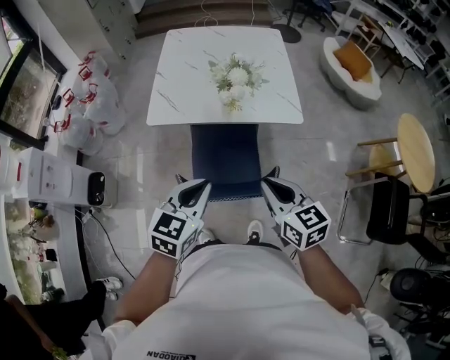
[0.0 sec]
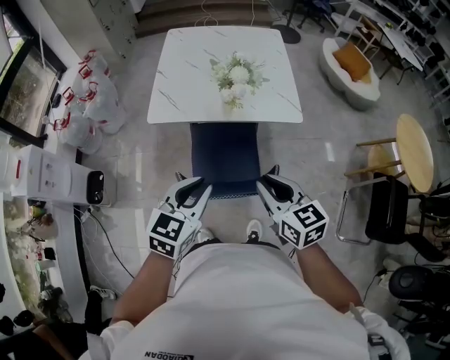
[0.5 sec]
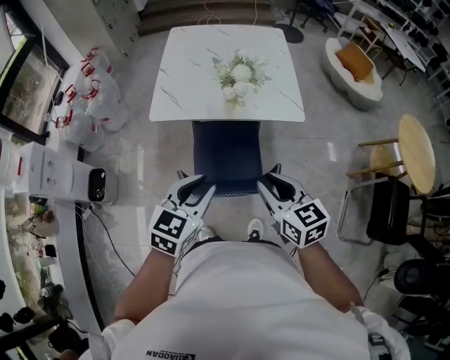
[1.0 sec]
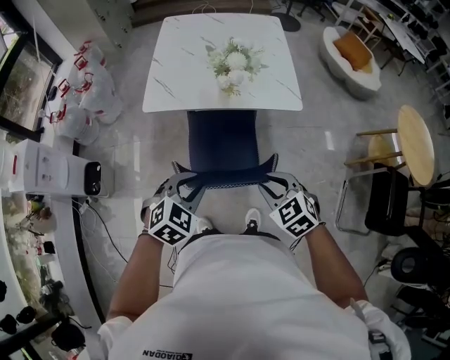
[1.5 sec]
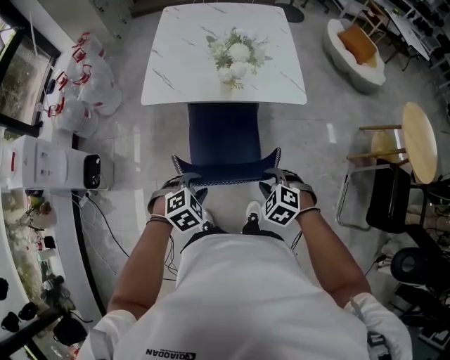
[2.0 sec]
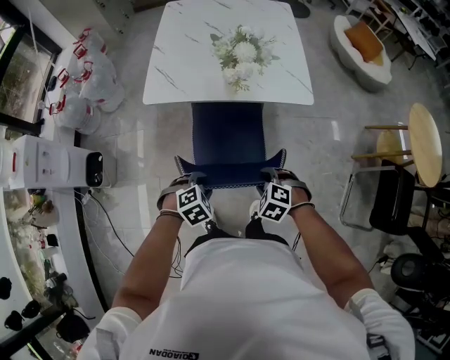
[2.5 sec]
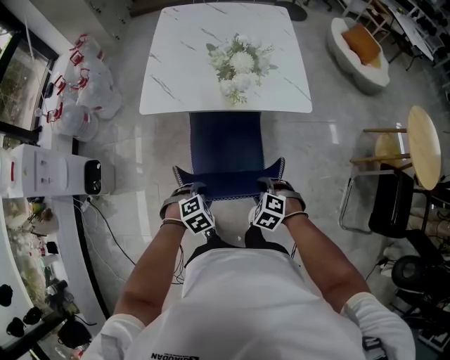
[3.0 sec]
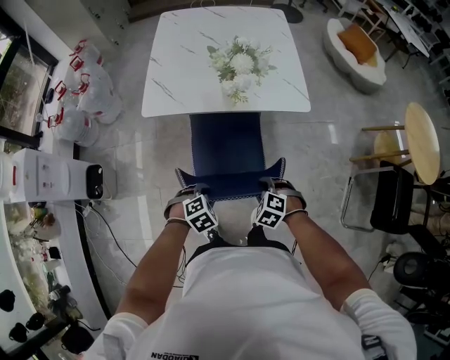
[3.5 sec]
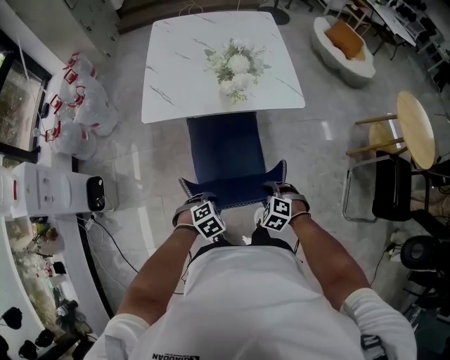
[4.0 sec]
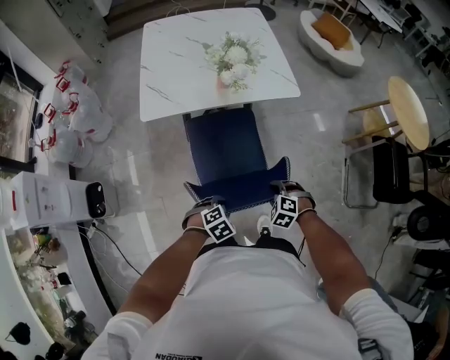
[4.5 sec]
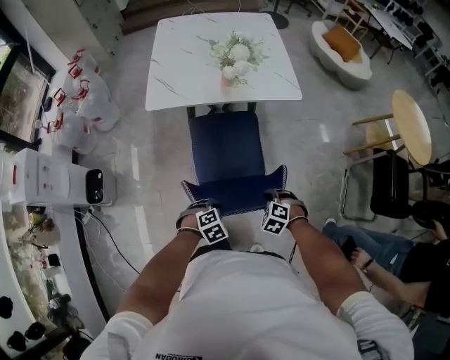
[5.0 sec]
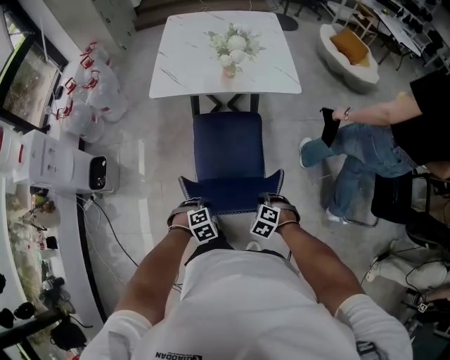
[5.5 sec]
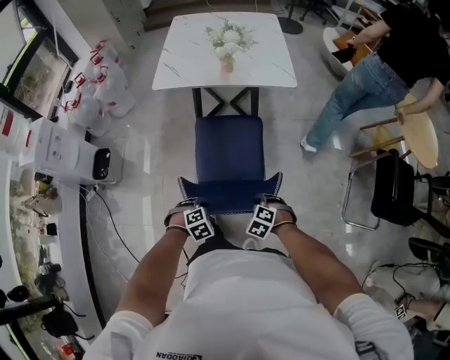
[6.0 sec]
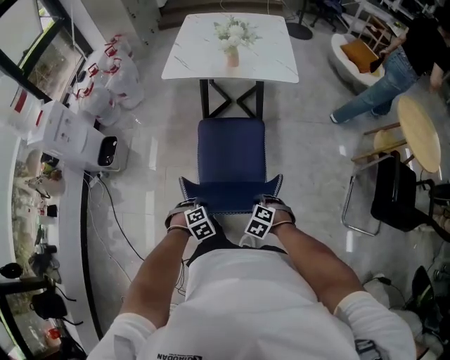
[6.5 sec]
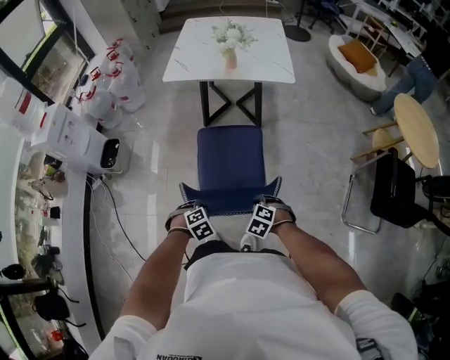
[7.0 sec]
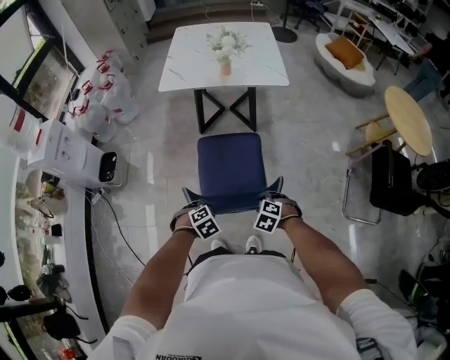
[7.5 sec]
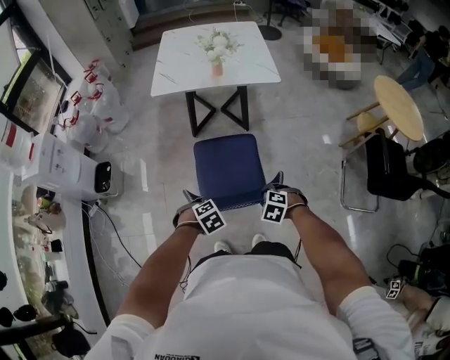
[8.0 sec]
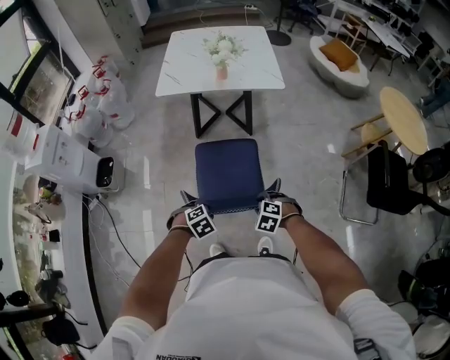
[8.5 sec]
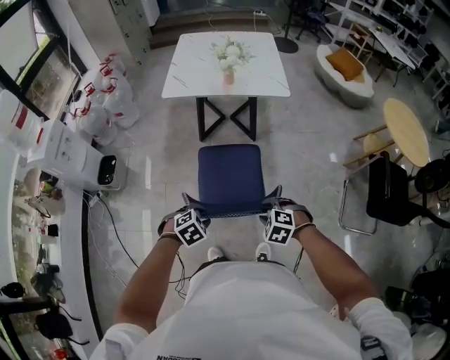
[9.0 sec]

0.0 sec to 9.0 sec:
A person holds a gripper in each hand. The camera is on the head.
0.0 sec to 2.0 sec: Both grippers travel together downward, some 20 cm. The right gripper points its fingers approximately 40 degrees further downward, and opens its fingers. The left gripper tilts its fingers some 40 degrees downward, and opens.
2.0 sec to 4.5 sec: The grippers both shift downward and backward by roughly 10 cm.
4.5 sec to 7.0 sec: The right gripper shifts by roughly 25 cm, while the left gripper ends up about 25 cm from where it was.
7.0 sec to 9.0 sec: Both grippers travel together upward, roughly 10 cm.

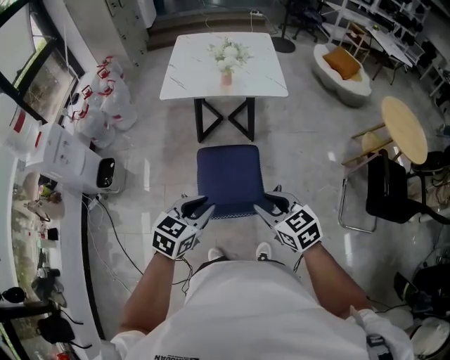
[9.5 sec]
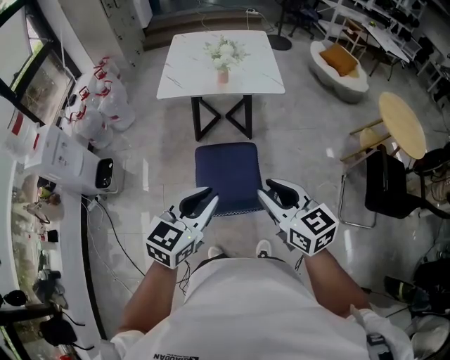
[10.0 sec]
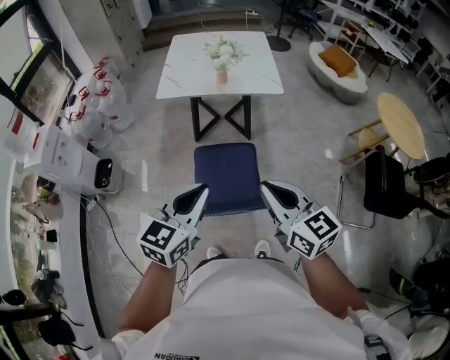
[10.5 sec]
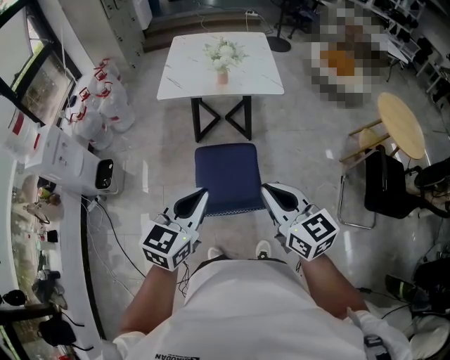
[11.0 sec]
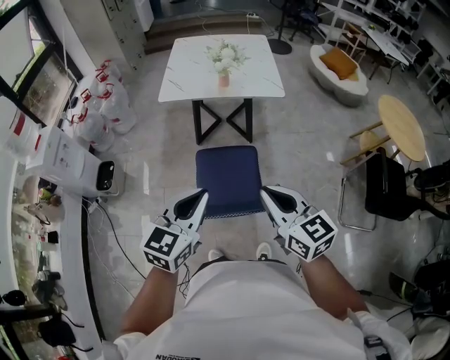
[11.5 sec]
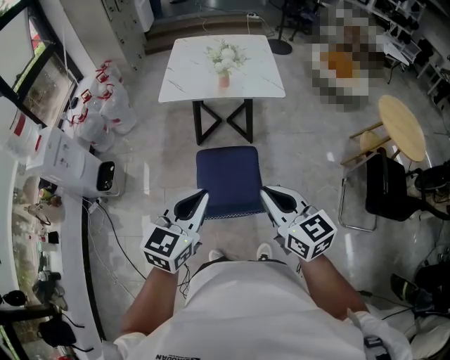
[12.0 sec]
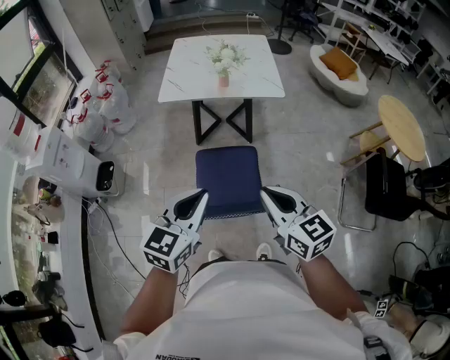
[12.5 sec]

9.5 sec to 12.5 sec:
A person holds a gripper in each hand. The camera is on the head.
9.5 sec to 11.0 sec: The grippers both shift upward by roughly 10 cm. The left gripper closes its fingers. The right gripper rotates approximately 20 degrees, and closes its fingers.
11.0 sec to 12.5 sec: The two grippers keep their place.

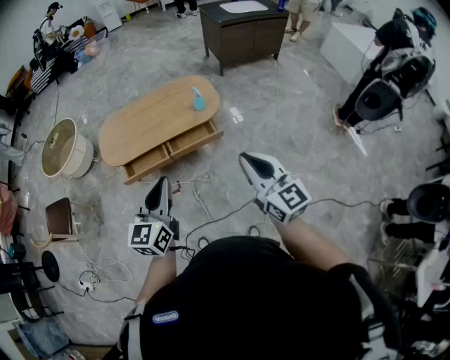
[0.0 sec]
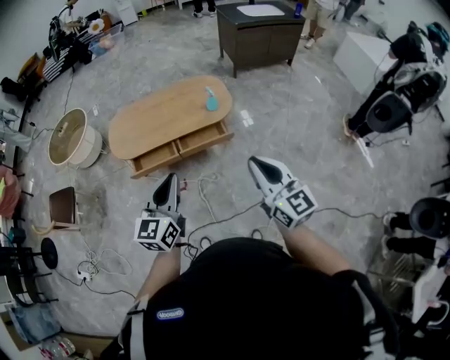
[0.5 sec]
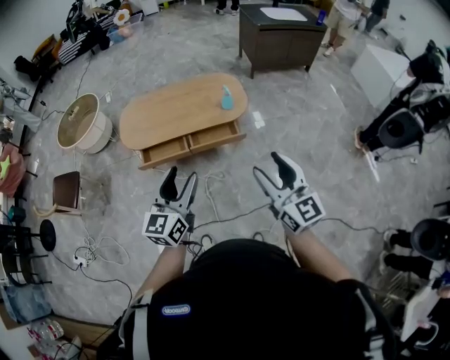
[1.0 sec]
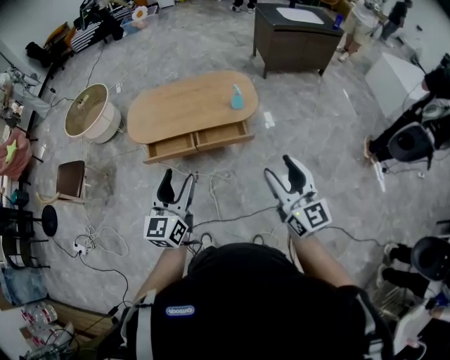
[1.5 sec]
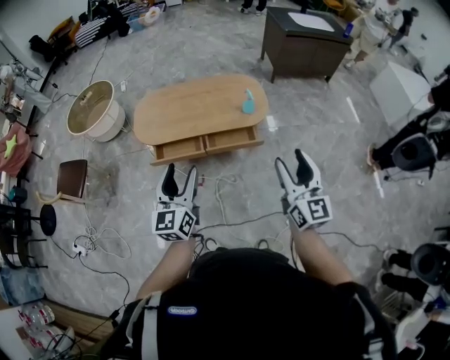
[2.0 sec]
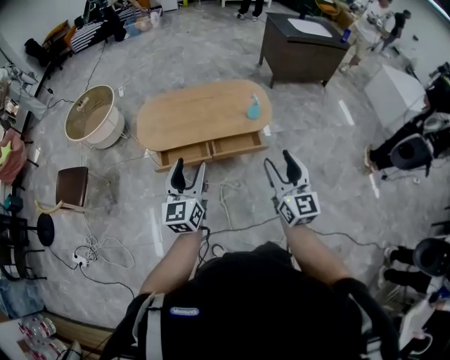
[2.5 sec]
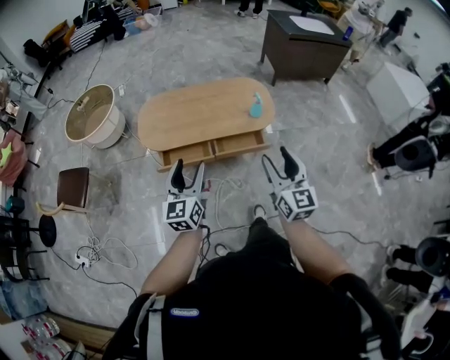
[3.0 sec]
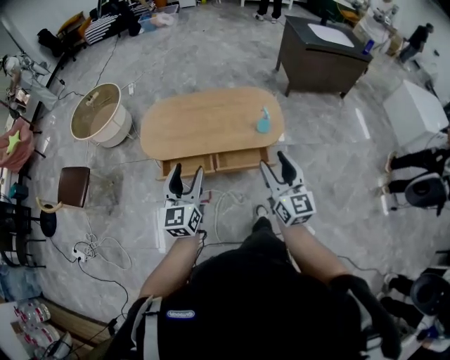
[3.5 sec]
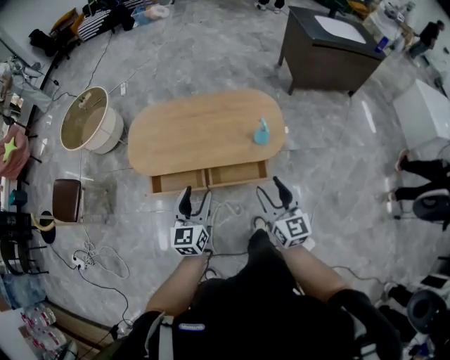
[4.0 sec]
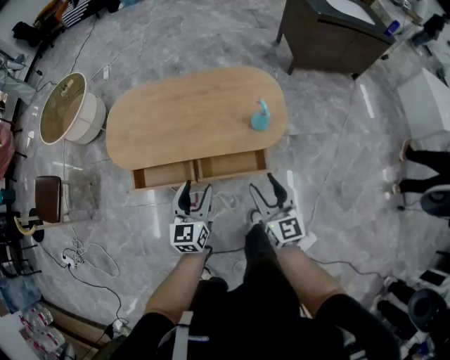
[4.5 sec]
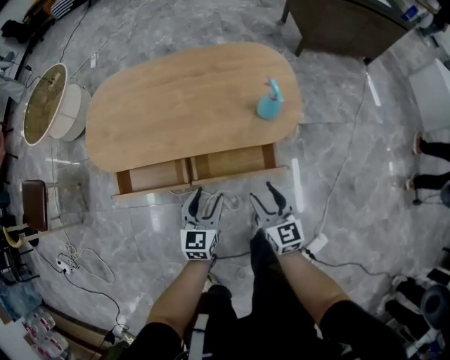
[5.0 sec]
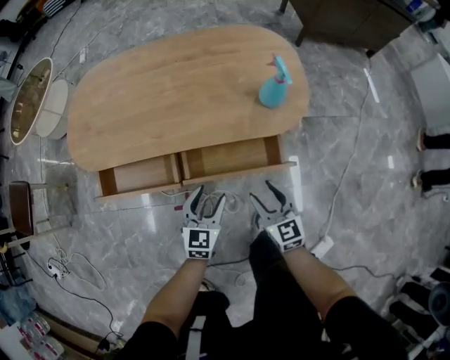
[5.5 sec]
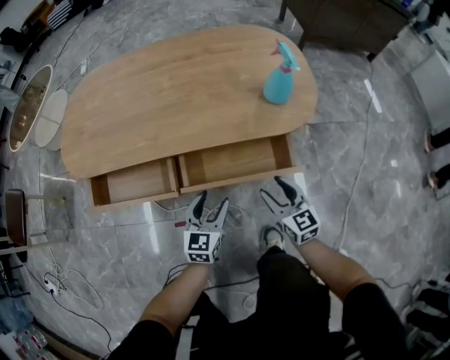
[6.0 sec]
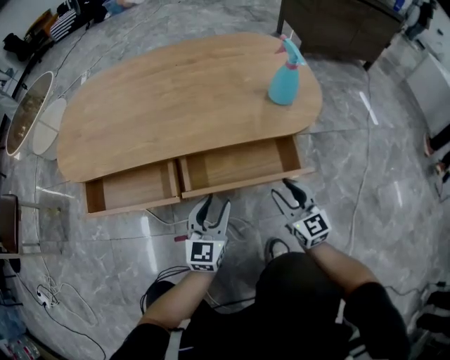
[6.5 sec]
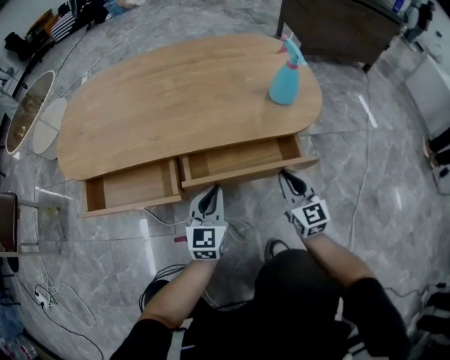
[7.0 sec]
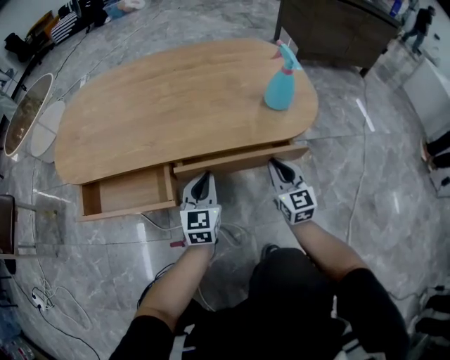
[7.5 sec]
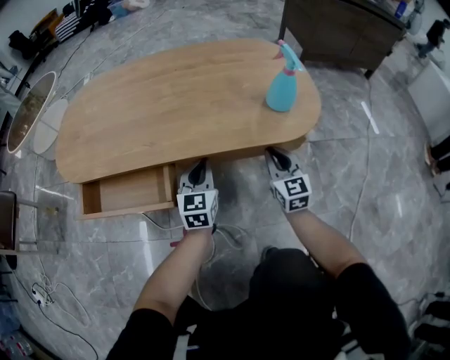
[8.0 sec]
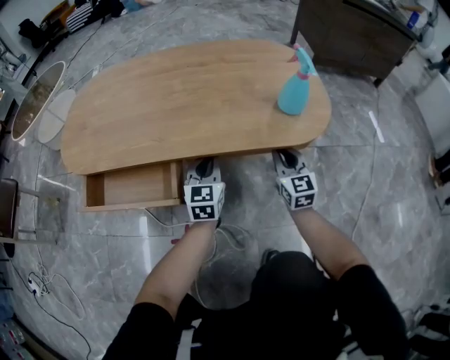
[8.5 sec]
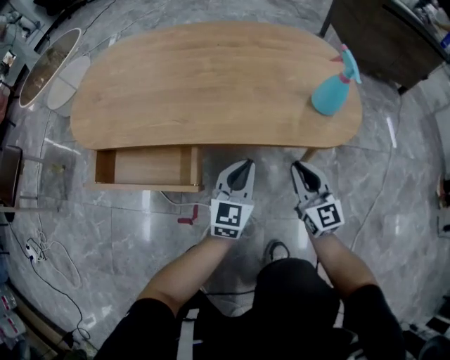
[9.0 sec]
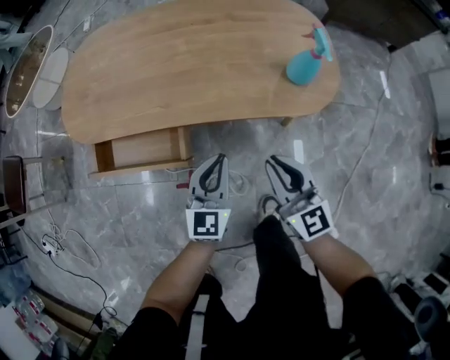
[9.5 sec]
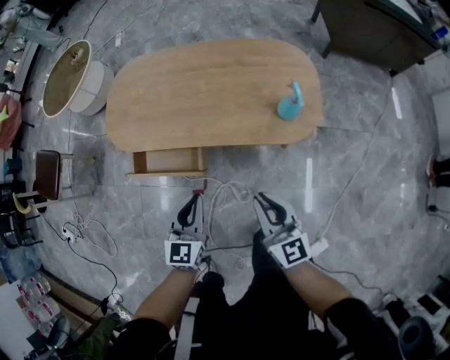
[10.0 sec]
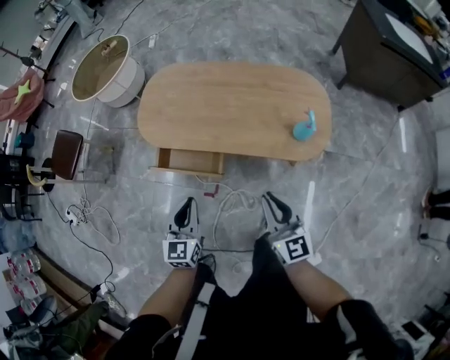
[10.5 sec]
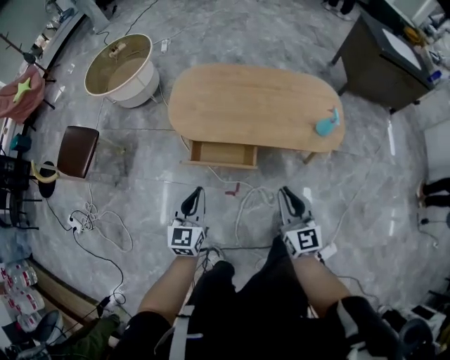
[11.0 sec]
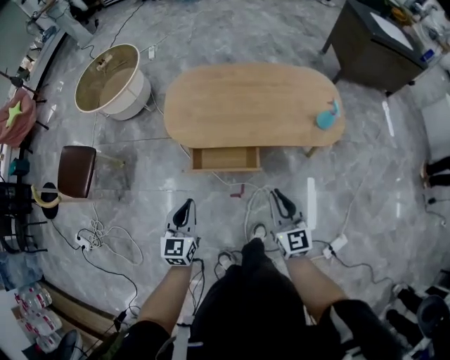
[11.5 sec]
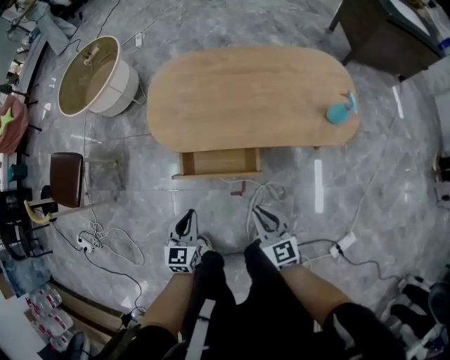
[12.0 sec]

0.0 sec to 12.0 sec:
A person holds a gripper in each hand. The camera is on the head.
0.0 sec to 2.0 sec: The left gripper travels to the left and forward by roughly 10 cm, and opens up. Meanwhile the right gripper is displaced forward by roughly 10 cm, and opens up.
2.0 sec to 4.0 sec: Both grippers move forward and downward, roughly 30 cm.
4.0 sec to 6.0 sec: Both grippers move downward, some 50 cm.
6.0 sec to 8.0 sec: The grippers both shift forward by roughly 15 cm. The right gripper closes up; the left gripper closes its fingers.
8.0 sec to 10.0 sec: The two grippers go some 35 cm upward and backward. The right gripper turns by about 30 degrees.
10.0 sec to 12.0 sec: The grippers both shift to the left by some 25 cm. The right gripper swivels about 20 degrees.

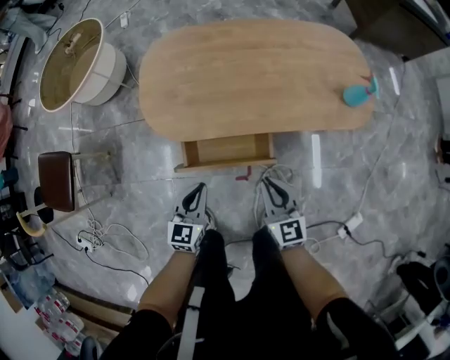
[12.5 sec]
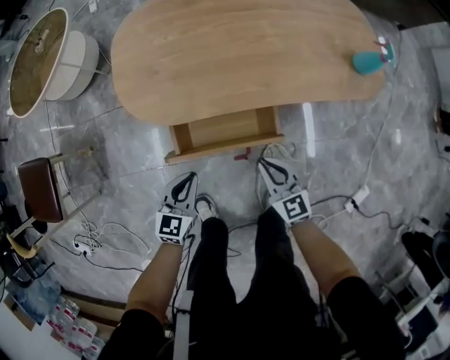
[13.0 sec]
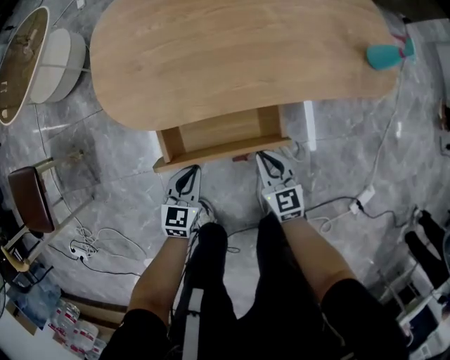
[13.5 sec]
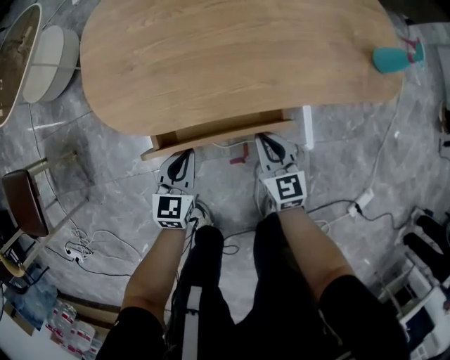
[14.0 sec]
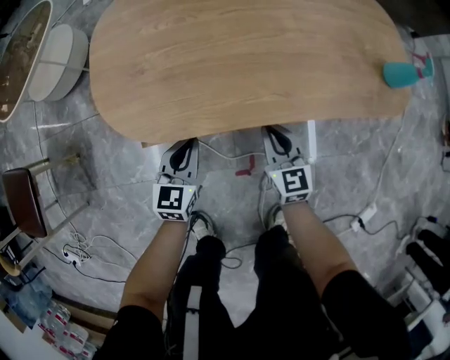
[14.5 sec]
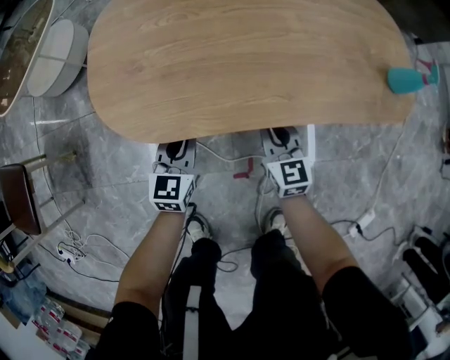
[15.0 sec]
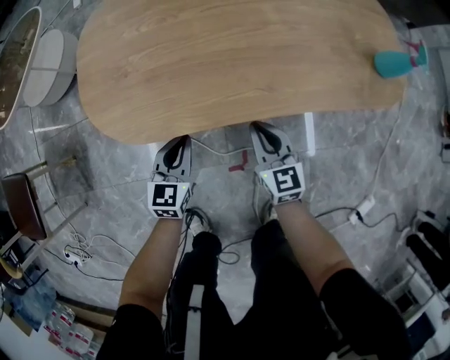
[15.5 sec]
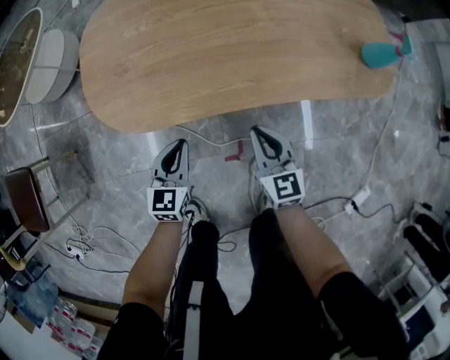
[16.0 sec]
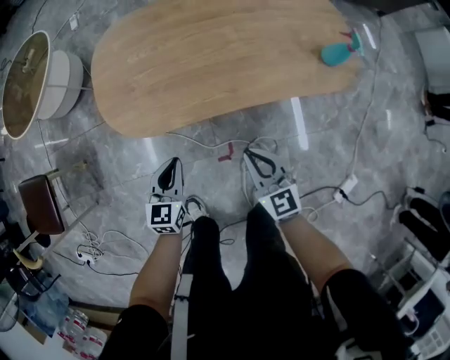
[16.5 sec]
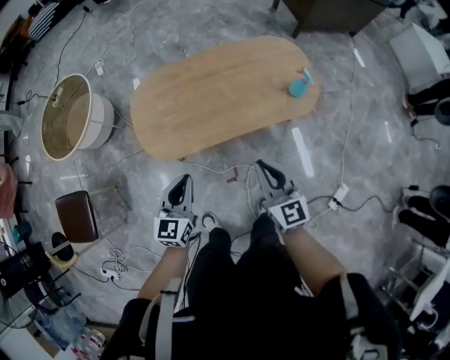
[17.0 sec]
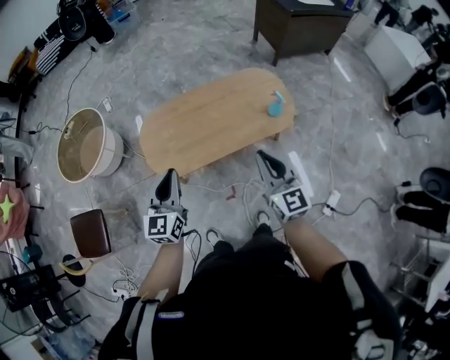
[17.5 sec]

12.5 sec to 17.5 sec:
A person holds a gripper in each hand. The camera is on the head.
12.5 sec to 15.0 sec: Both grippers move downward and forward, roughly 25 cm.
15.0 sec to 17.5 sec: Both grippers travel together upward, some 60 cm. The right gripper swivels some 20 degrees.
